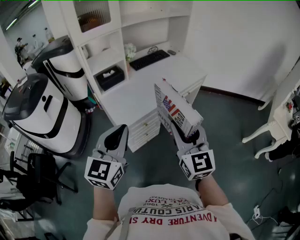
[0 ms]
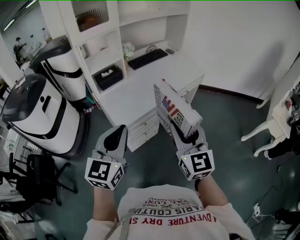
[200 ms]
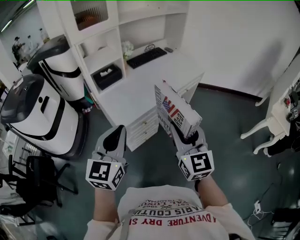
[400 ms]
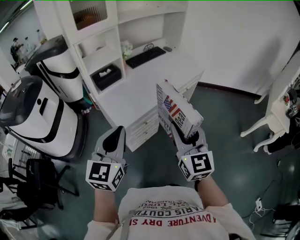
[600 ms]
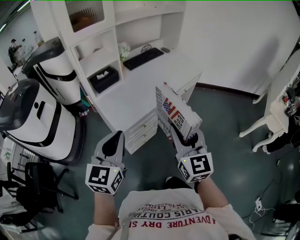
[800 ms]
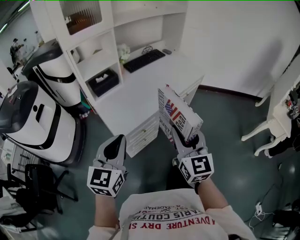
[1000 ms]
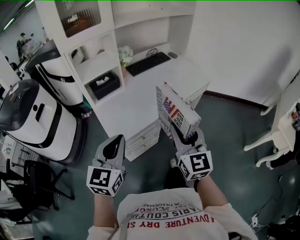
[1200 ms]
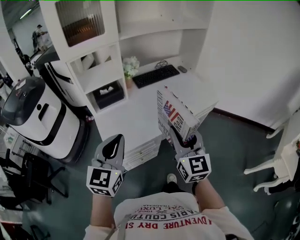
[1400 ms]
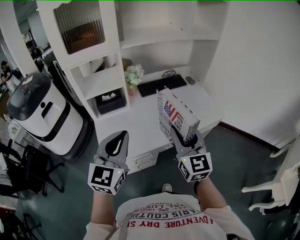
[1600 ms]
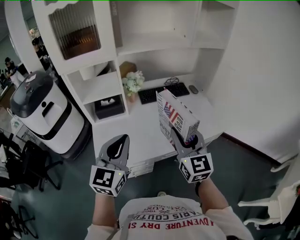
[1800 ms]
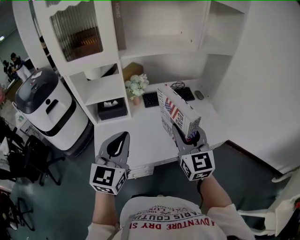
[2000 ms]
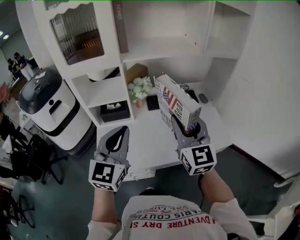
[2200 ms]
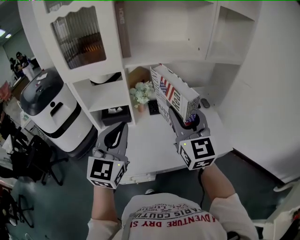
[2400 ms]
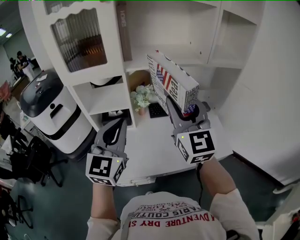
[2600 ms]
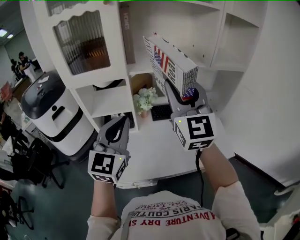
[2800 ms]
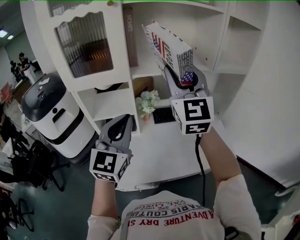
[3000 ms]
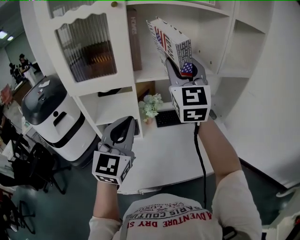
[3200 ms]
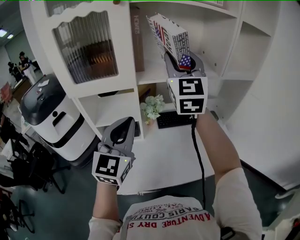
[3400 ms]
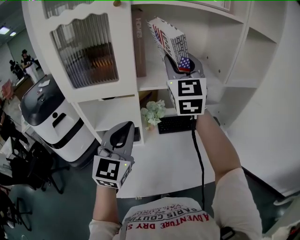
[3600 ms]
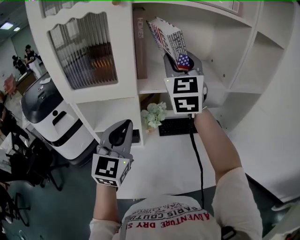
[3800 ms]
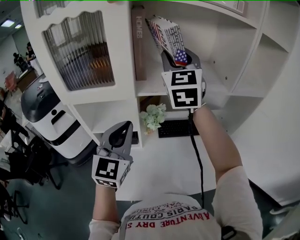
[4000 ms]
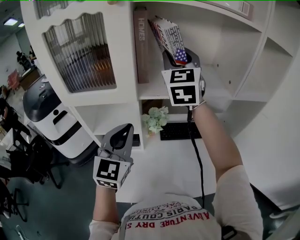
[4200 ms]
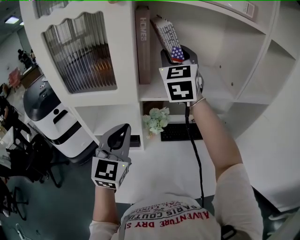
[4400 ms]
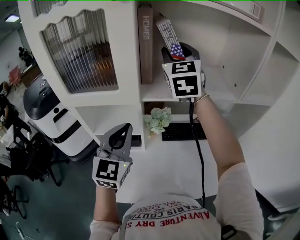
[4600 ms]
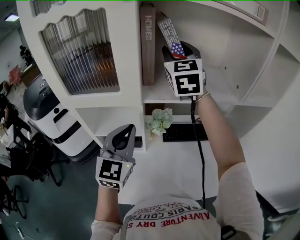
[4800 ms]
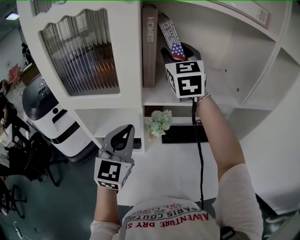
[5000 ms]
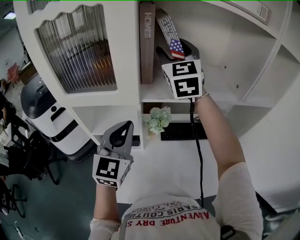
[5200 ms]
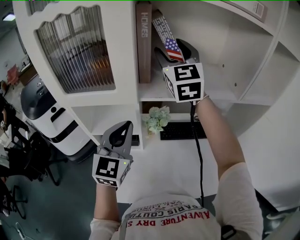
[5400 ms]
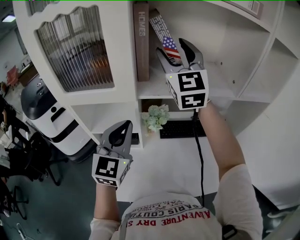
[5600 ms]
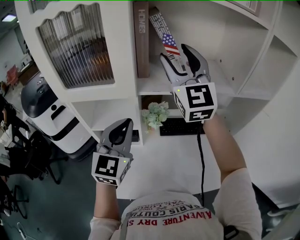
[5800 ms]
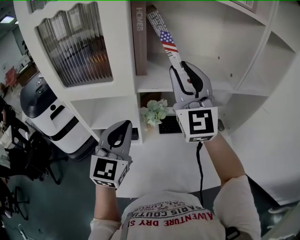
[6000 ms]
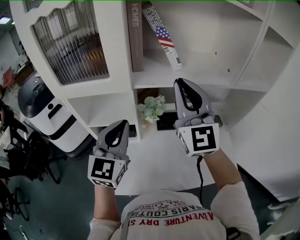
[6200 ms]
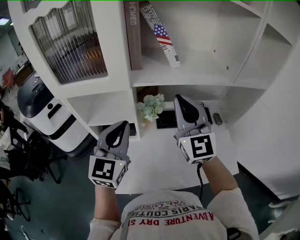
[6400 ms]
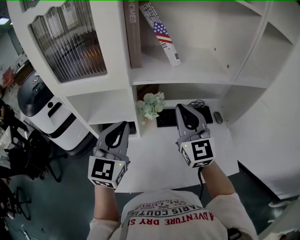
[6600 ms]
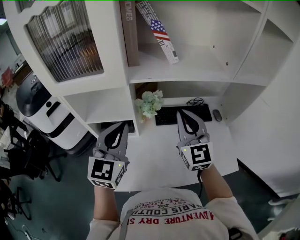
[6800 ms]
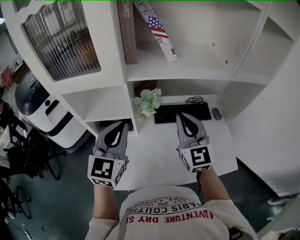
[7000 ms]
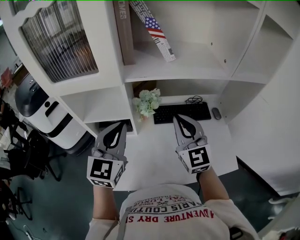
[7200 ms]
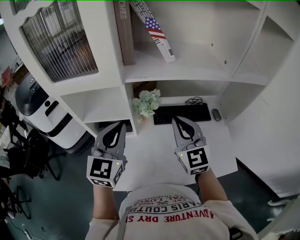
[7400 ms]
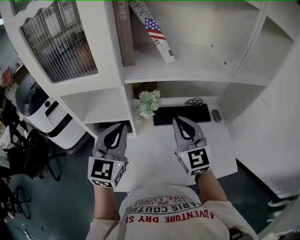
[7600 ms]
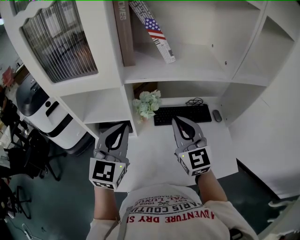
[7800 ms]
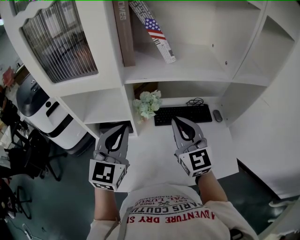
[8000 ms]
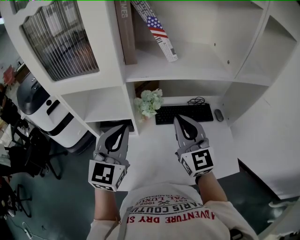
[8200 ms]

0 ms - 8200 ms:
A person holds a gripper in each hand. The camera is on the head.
0 ms - 1600 ms: Both grippers travel together forward, roughly 30 cm.
1600 ms - 3200 ms: The right gripper travels forward and upward by roughly 40 cm, and turns by approximately 20 degrees, while the left gripper goes approximately 25 cm forward and upward.
3200 ms - 5000 ms: The left gripper goes approximately 15 cm forward, while the right gripper moves forward, about 20 cm.
5000 ms - 6600 ms: The left gripper changes place by roughly 5 cm. Meanwhile the right gripper goes approximately 25 cm backward and downward, and closes its fingers.

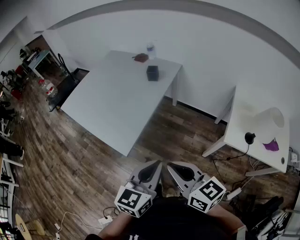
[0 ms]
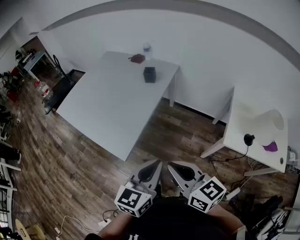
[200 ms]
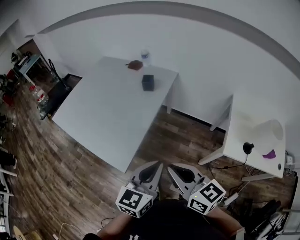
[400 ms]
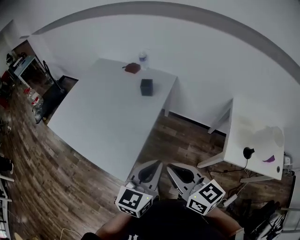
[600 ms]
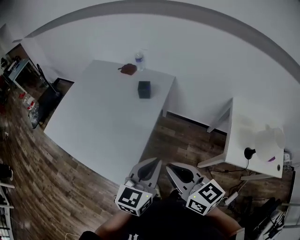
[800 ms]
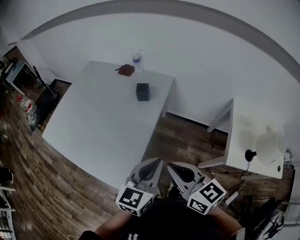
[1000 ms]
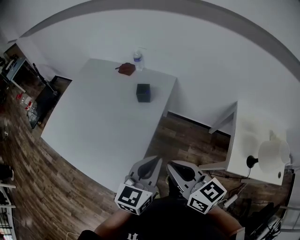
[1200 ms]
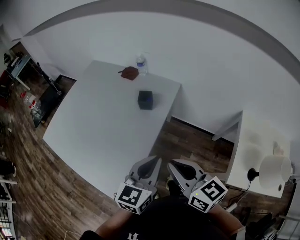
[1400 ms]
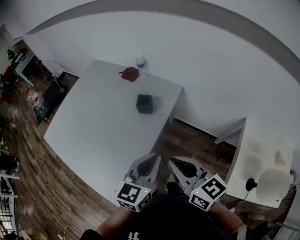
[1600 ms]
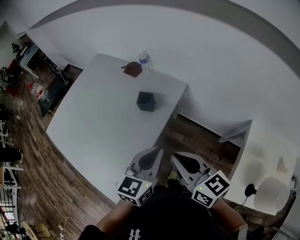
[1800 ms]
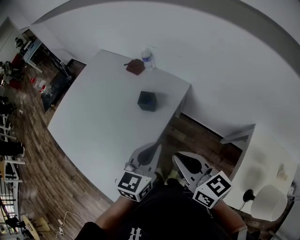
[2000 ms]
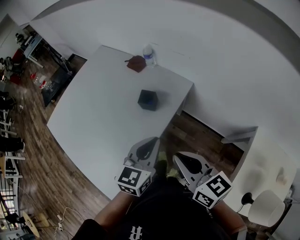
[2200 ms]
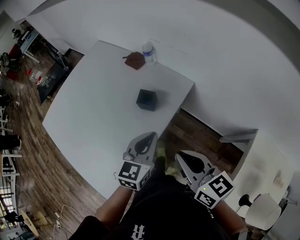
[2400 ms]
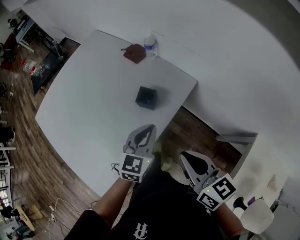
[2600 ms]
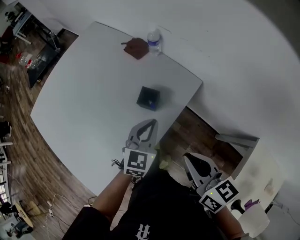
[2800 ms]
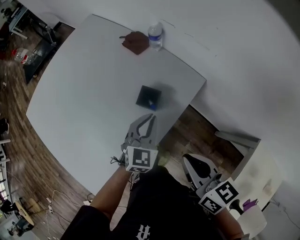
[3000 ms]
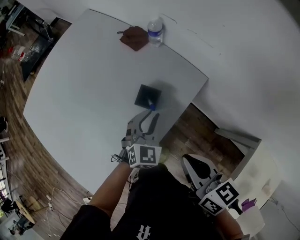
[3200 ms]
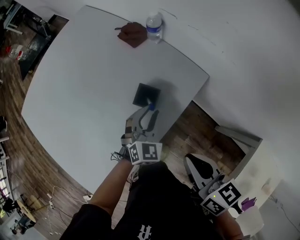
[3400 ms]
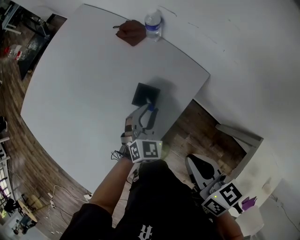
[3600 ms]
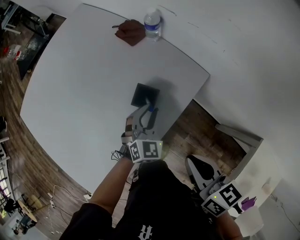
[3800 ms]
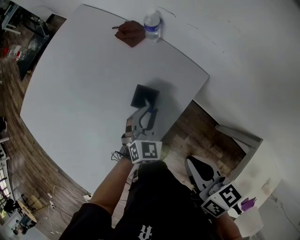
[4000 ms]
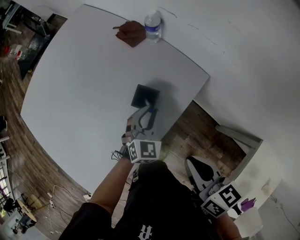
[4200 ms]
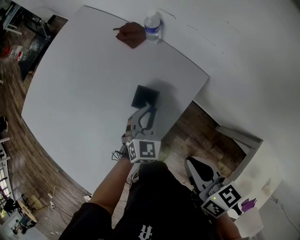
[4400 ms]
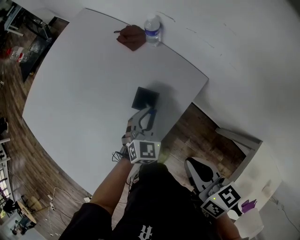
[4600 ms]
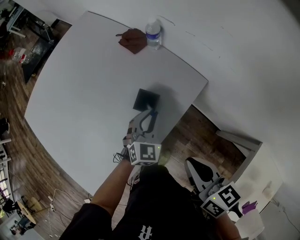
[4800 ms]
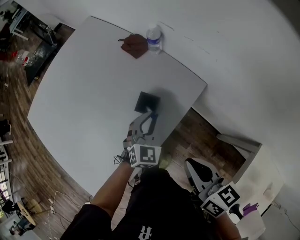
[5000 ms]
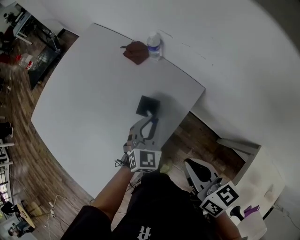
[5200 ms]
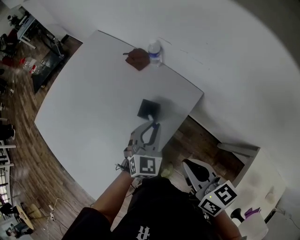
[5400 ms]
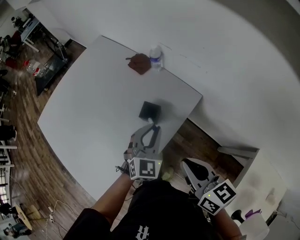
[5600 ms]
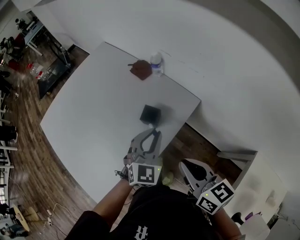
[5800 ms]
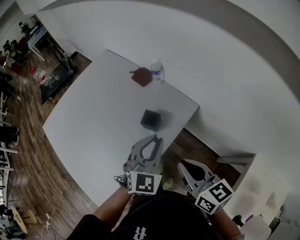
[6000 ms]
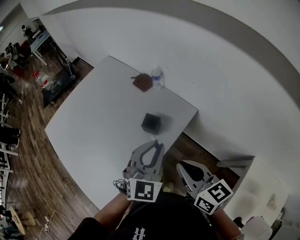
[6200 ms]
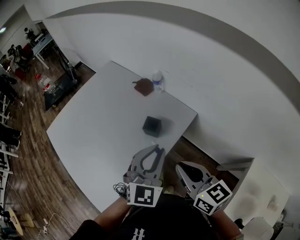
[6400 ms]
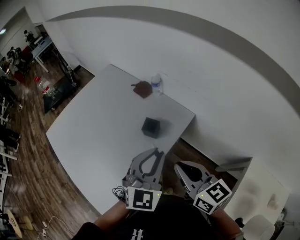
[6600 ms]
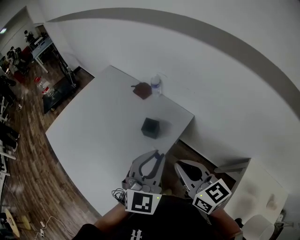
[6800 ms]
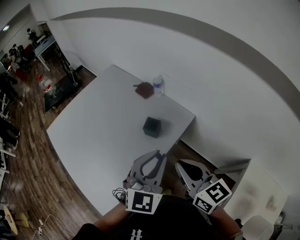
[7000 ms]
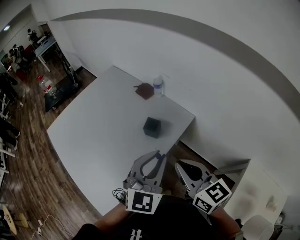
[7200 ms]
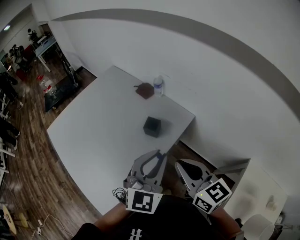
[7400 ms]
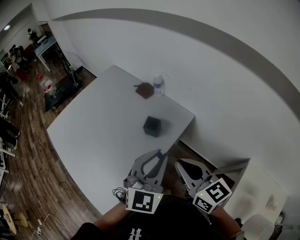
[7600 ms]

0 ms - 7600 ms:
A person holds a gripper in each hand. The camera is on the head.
0 ms - 1600 ms: Both grippers travel together forward, roughly 35 cm.
1600 ms - 3000 ms: The right gripper travels forward and downward by about 20 cm; the left gripper is displaced forward and downward by roughly 30 cm, and changes its angle by approximately 30 degrees.
3000 ms - 4600 ms: The left gripper travels downward by some 5 cm.
4600 ms - 6000 ms: The right gripper is displaced upward by about 5 cm; the left gripper moves upward and backward, some 20 cm.
6000 ms - 7600 ms: The right gripper travels upward by roughly 5 cm; the left gripper heads backward and upward, covering approximately 15 cm.

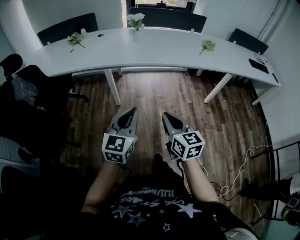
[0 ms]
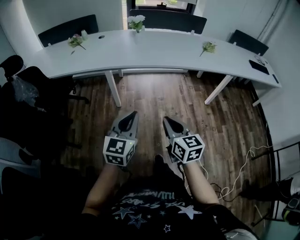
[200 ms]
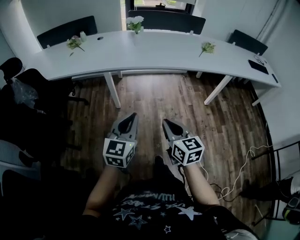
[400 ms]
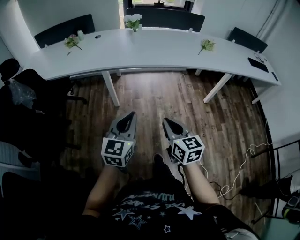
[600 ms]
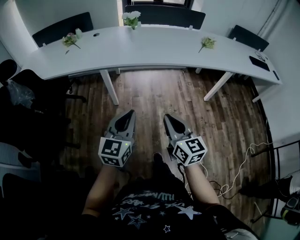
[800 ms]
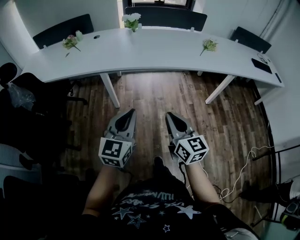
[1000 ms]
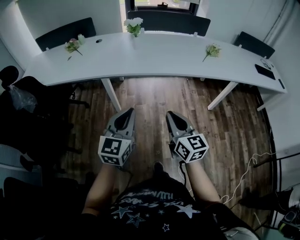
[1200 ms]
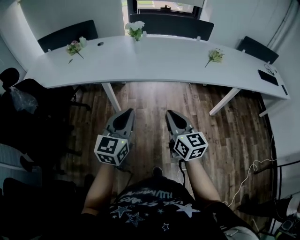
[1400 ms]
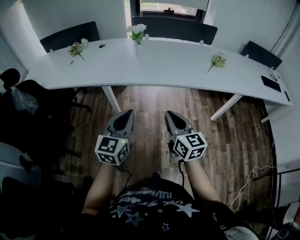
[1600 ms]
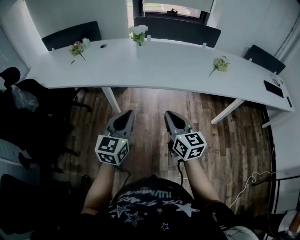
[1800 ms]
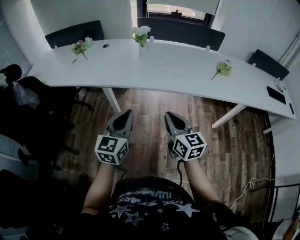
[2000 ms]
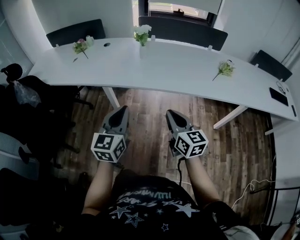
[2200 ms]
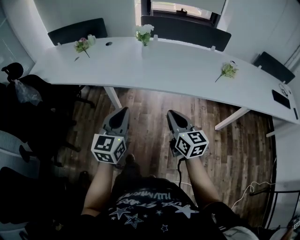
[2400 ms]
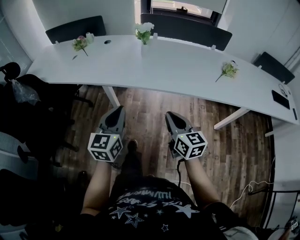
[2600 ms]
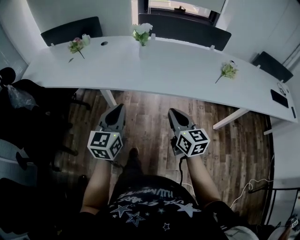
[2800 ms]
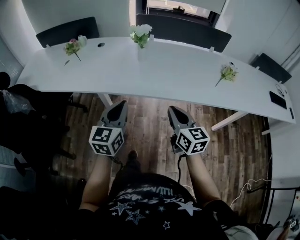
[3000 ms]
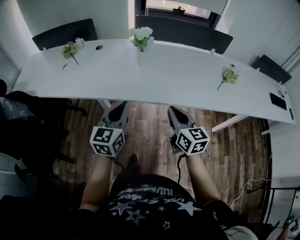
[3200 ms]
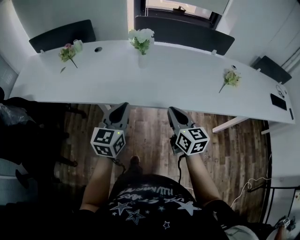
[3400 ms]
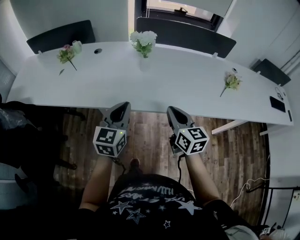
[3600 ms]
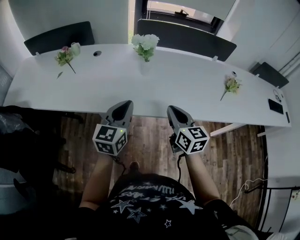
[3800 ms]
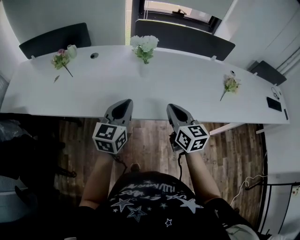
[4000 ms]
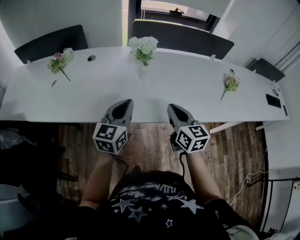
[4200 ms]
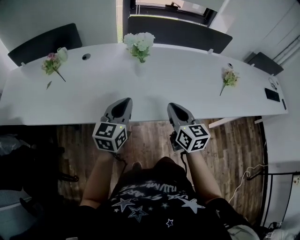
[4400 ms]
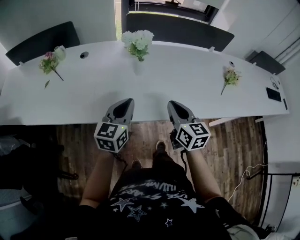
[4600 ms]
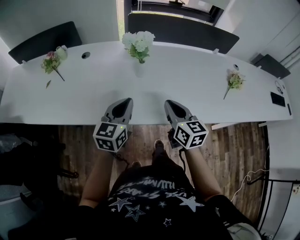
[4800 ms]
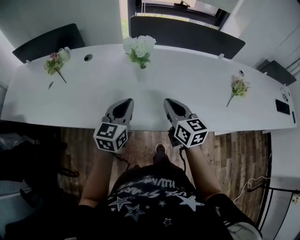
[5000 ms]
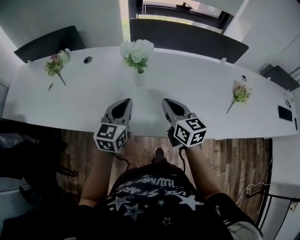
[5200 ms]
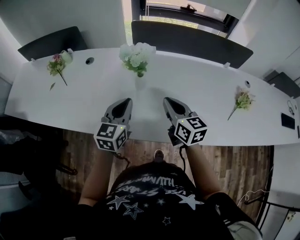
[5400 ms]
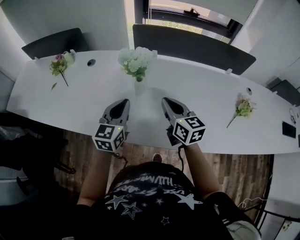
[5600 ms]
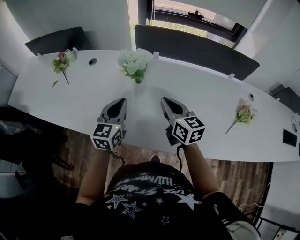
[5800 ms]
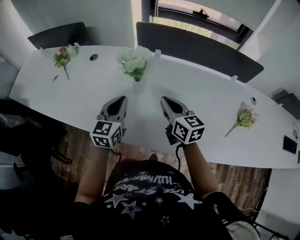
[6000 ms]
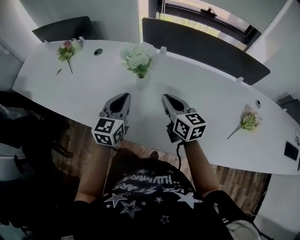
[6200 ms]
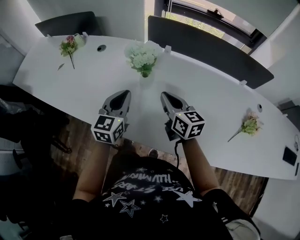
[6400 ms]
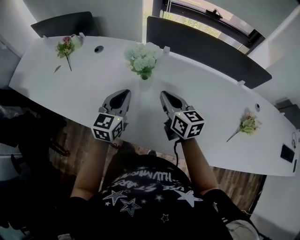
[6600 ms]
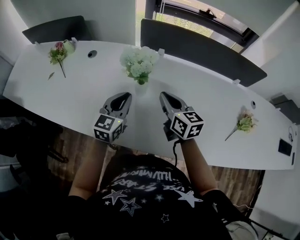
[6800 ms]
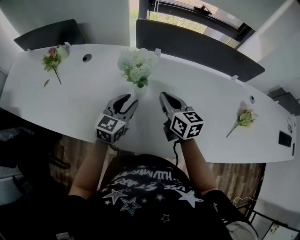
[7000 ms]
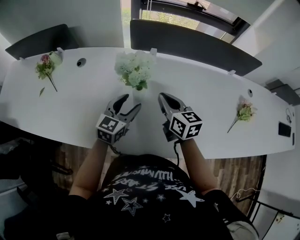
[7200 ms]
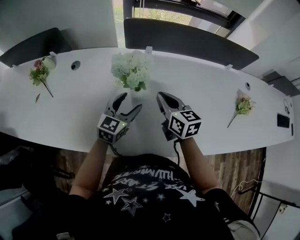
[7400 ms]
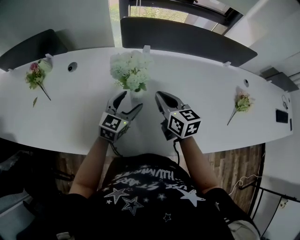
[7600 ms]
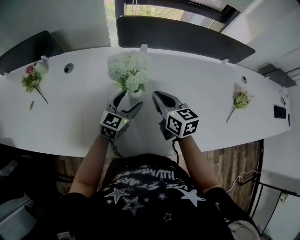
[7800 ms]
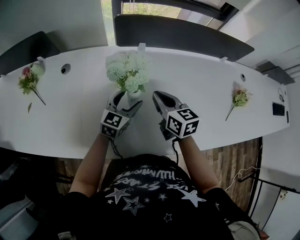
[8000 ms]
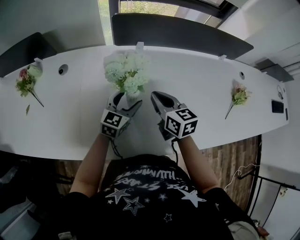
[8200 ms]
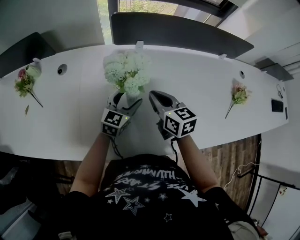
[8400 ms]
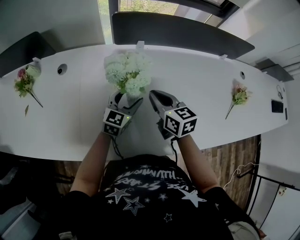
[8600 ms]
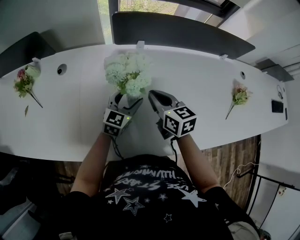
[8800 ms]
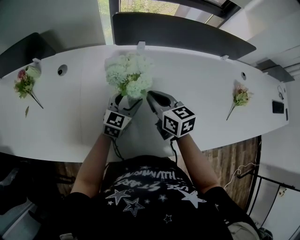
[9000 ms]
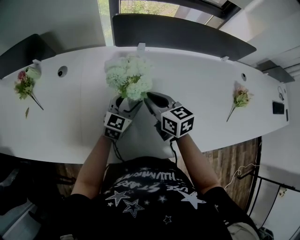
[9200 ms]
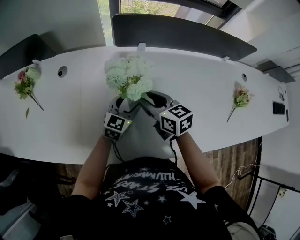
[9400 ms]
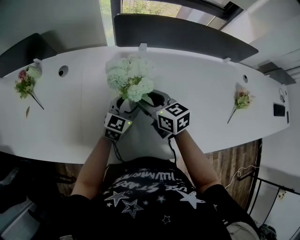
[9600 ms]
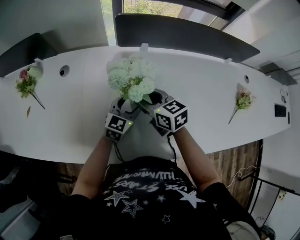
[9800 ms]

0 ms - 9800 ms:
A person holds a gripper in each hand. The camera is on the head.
0 ms - 1400 ms: The left gripper shifts about 10 cm forward, while the right gripper goes about 15 cm forward and to the right.
1400 ms - 2800 ms: The two grippers go some 15 cm forward.
2800 ms - 4200 ms: Both grippers move forward, some 25 cm.
4200 ms - 5600 ms: The right gripper heads forward, covering approximately 15 cm. The left gripper heads forward and to the right, covering some 15 cm.
5600 ms - 7000 ms: The left gripper goes some 10 cm forward and downward, and opens, while the right gripper moves forward, about 10 cm.
7000 ms - 8400 ms: The left gripper heads downward and forward, covering some 10 cm, and opens up.
8400 ms - 9800 ms: The right gripper moves to the left, roughly 5 cm, and opens its fingers.
